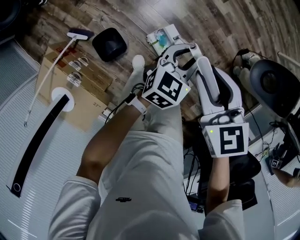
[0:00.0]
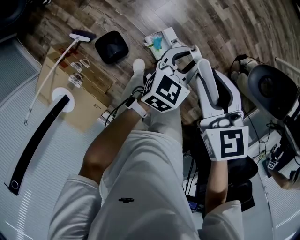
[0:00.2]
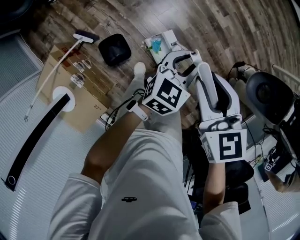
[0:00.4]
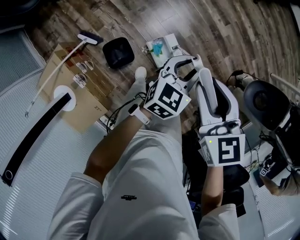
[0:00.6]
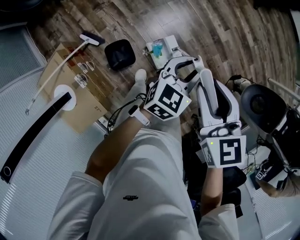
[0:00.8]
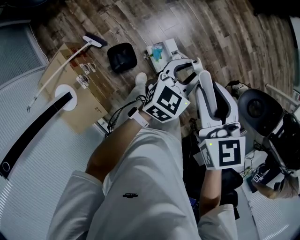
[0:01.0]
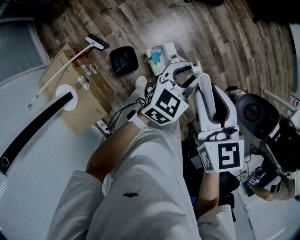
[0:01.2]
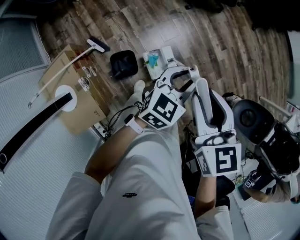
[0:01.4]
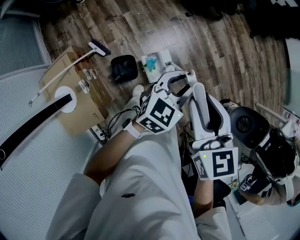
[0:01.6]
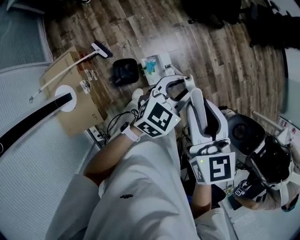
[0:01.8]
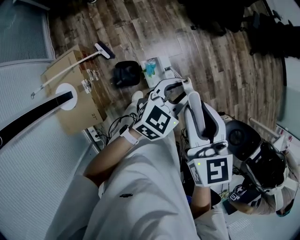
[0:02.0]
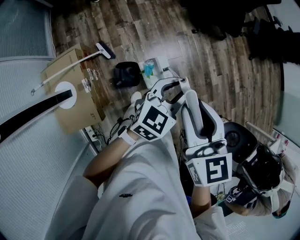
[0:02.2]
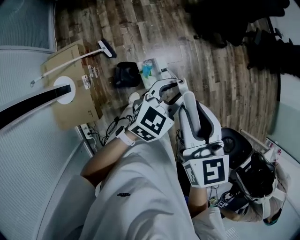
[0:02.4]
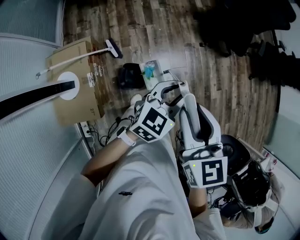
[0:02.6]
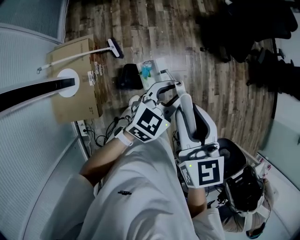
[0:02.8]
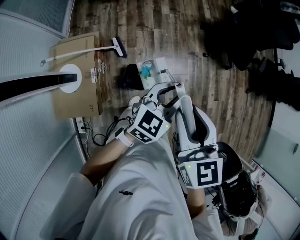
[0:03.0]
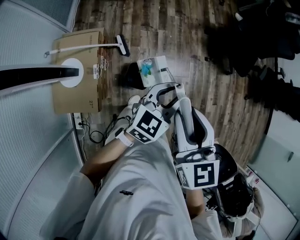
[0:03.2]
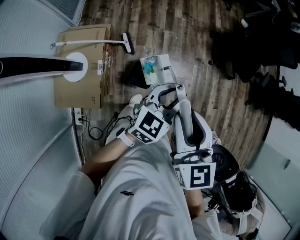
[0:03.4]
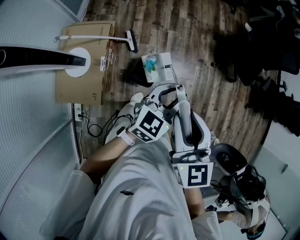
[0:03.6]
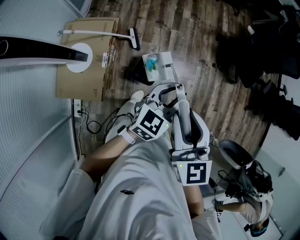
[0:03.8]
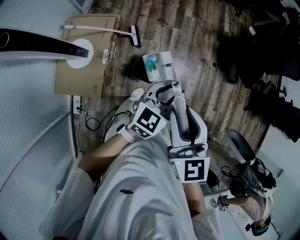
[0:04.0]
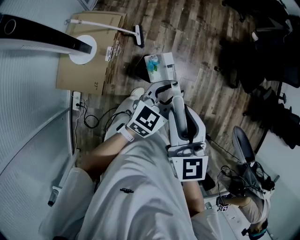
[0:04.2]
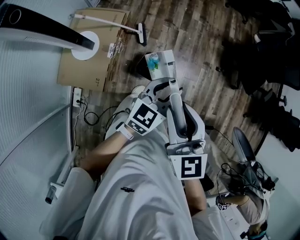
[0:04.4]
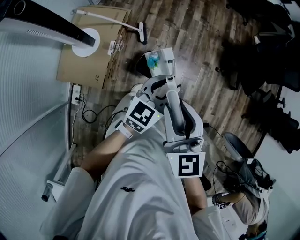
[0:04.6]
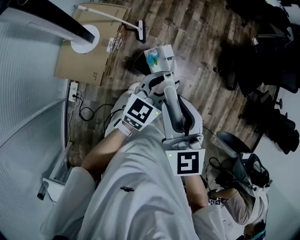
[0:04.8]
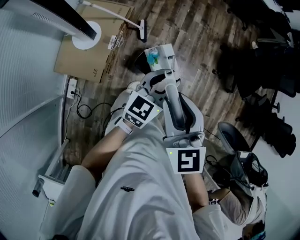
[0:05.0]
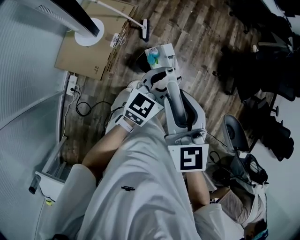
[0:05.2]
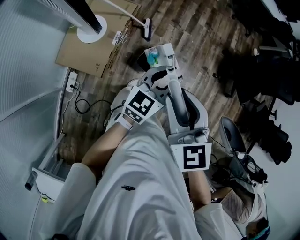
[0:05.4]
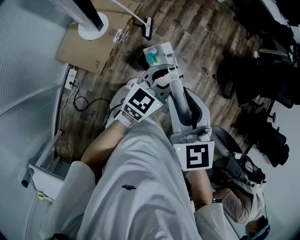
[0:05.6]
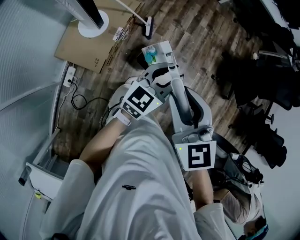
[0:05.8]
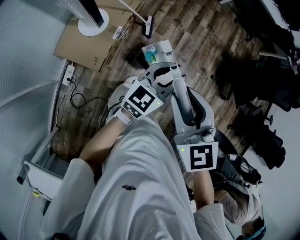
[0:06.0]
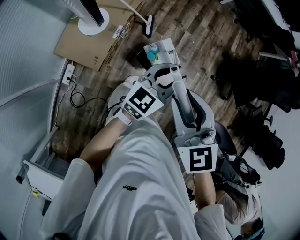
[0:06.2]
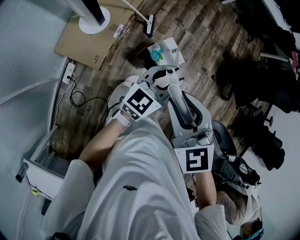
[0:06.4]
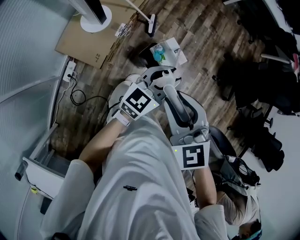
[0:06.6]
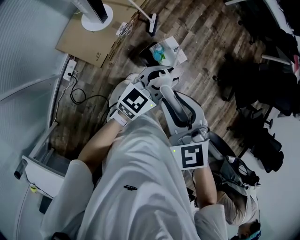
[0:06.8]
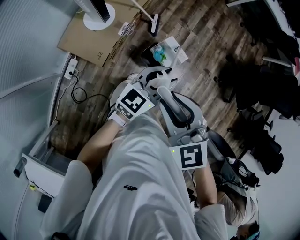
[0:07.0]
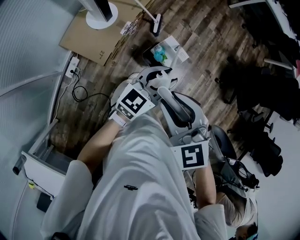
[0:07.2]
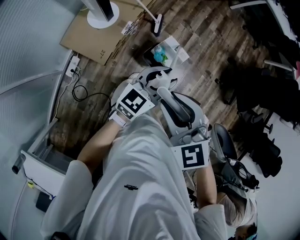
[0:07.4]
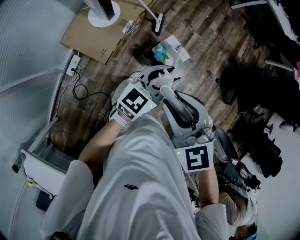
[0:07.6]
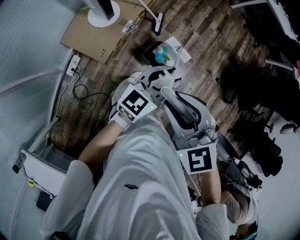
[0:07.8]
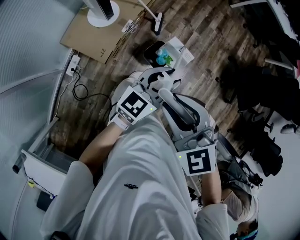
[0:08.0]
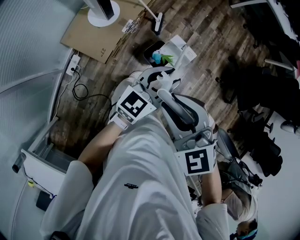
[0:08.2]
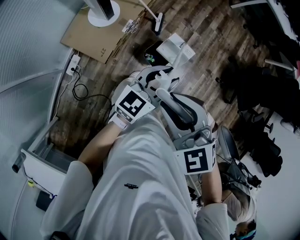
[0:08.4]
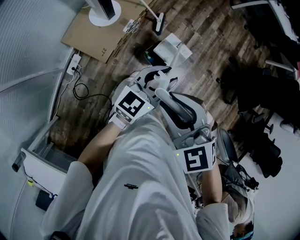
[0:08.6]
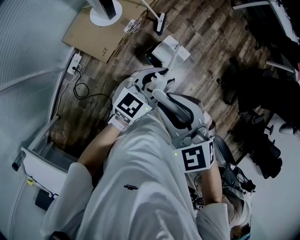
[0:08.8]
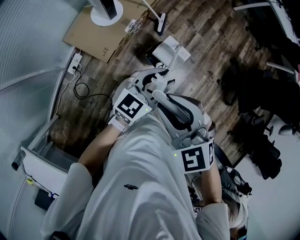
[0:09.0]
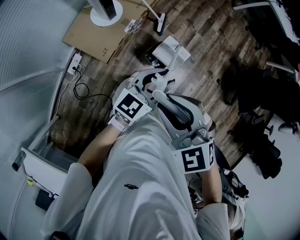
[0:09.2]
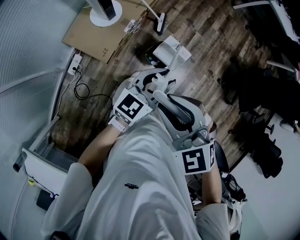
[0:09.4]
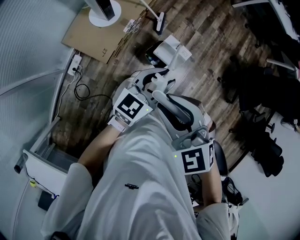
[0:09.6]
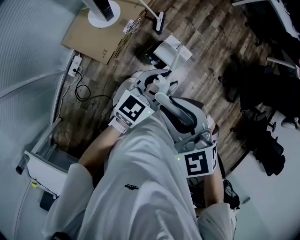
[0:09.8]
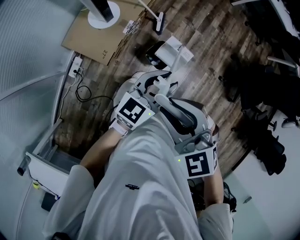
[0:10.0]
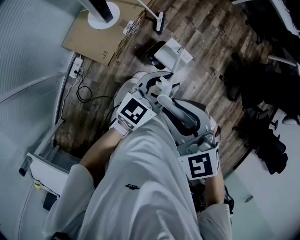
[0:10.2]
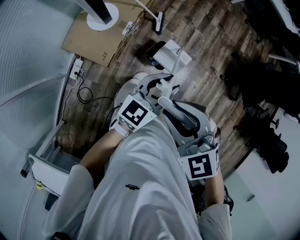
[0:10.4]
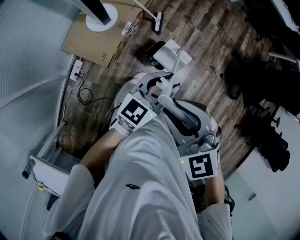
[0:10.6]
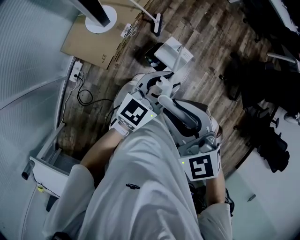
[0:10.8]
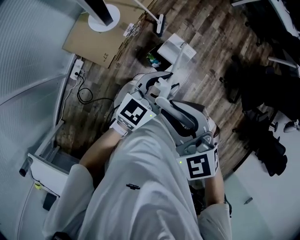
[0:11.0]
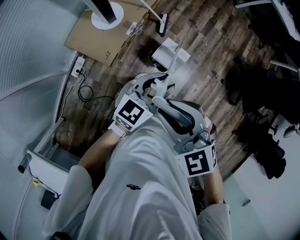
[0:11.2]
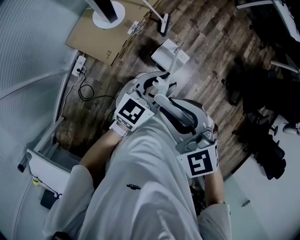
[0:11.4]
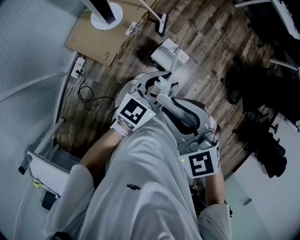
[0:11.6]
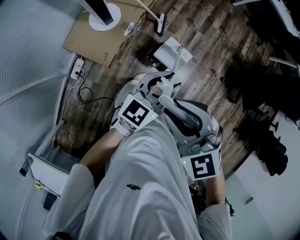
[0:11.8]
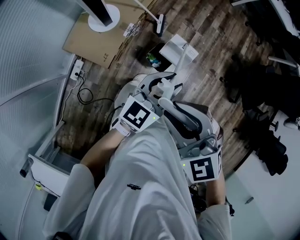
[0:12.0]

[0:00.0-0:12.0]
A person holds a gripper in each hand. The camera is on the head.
0:00.0 to 0:01.6: The grippers both shift upward and to the left by roughly 25 cm.
0:01.6 to 0:03.0: The grippers both shift to the left by some 15 cm. The left gripper rotates approximately 30 degrees, while the right gripper swivels approximately 20 degrees.
0:03.0 to 0:04.4: The grippers both shift to the left and backward by about 10 cm.
0:04.4 to 0:06.0: The right gripper changes its angle by roughly 20 degrees.
0:06.0 to 0:07.6: The left gripper ends up approximately 5 cm from where it was. The right gripper travels backward by about 5 cm, and changes its angle by approximately 30 degrees.
0:07.6 to 0:12.0: There are only small adjustments of the grippers.

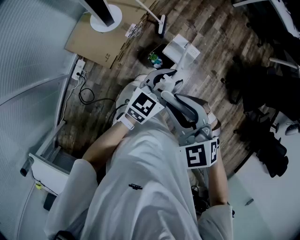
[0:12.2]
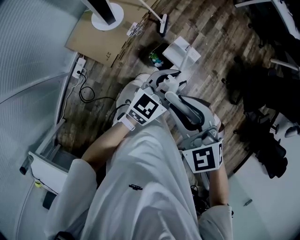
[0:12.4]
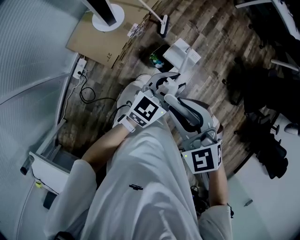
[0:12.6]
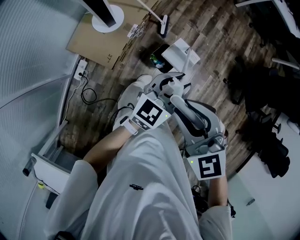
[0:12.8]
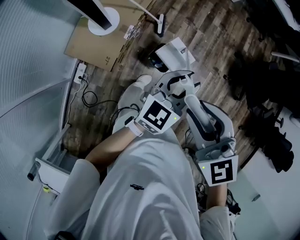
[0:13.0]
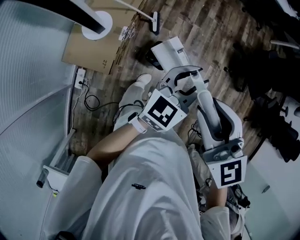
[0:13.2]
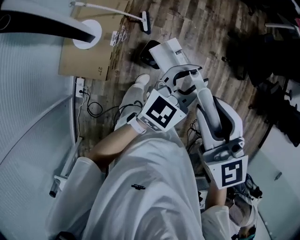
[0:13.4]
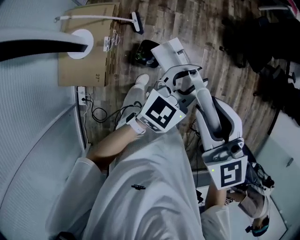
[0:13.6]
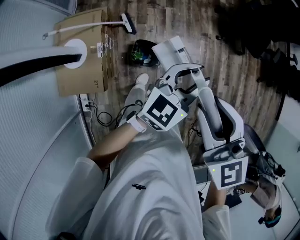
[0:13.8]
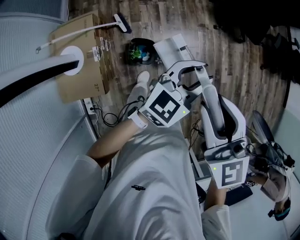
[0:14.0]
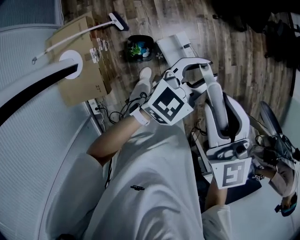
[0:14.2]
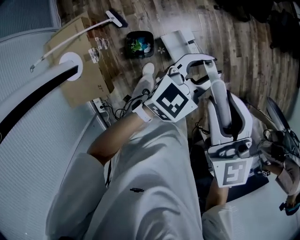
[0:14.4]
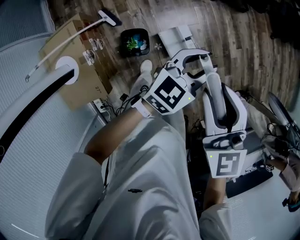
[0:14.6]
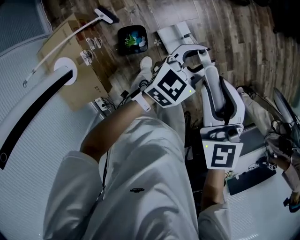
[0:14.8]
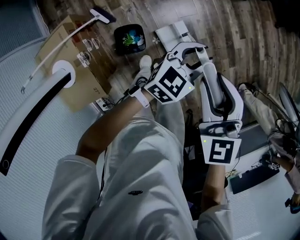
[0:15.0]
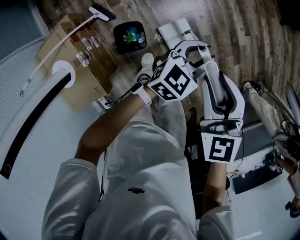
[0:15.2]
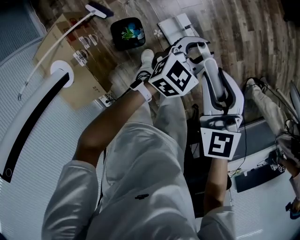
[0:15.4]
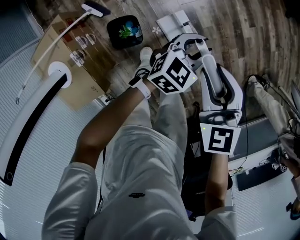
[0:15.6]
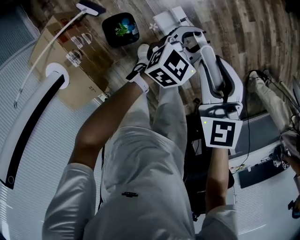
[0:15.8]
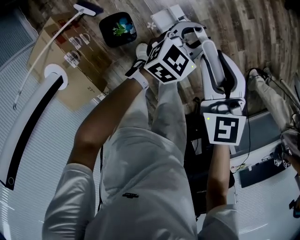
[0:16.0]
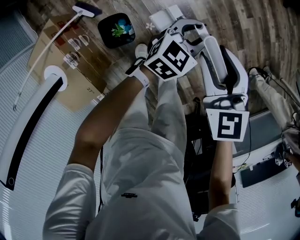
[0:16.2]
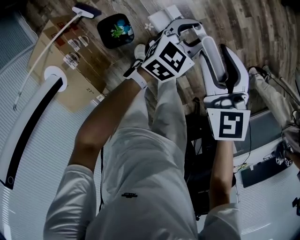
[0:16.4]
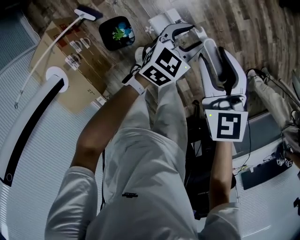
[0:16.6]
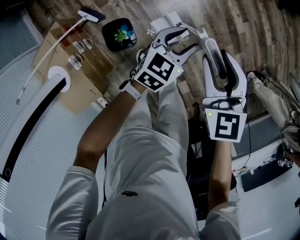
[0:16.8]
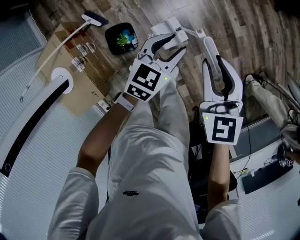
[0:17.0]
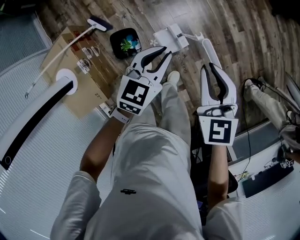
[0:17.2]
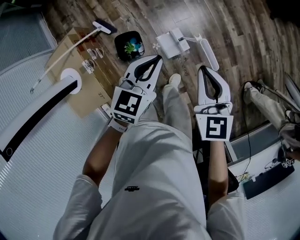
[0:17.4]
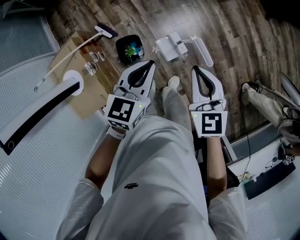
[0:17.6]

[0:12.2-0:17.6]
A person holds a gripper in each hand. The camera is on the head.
0:12.2 to 0:13.6: The left gripper changes place by about 20 cm, and changes its angle by approximately 20 degrees; the right gripper ends up roughly 20 cm from where it was, and changes its angle by some 50 degrees.
0:13.6 to 0:15.0: The left gripper shifts by roughly 30 cm, and rotates about 40 degrees; the right gripper moves some 30 cm, and changes its angle by about 40 degrees.
0:15.0 to 0:16.2: The two grippers go about 15 cm downward and to the right.
0:16.2 to 0:17.6: The left gripper shifts approximately 30 cm upward, backward and to the left, rotates some 30 degrees, and closes its fingers. The right gripper goes roughly 20 cm upward and backward, and closes.

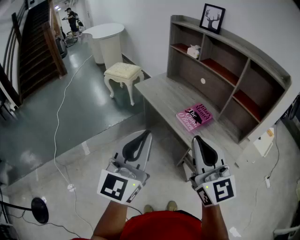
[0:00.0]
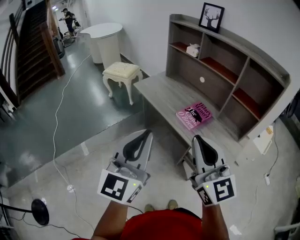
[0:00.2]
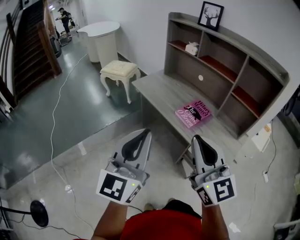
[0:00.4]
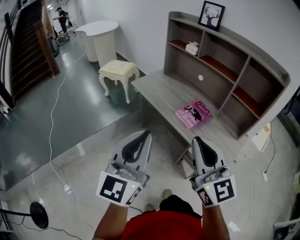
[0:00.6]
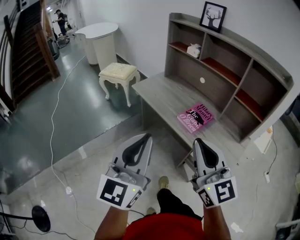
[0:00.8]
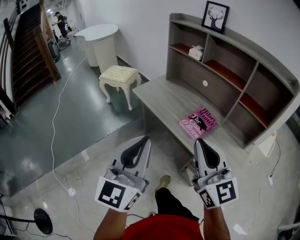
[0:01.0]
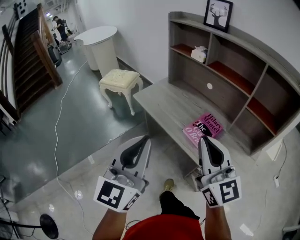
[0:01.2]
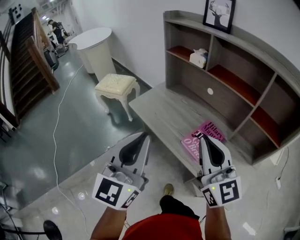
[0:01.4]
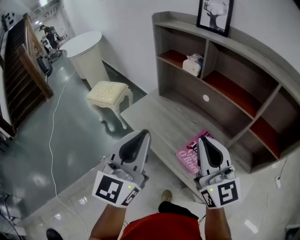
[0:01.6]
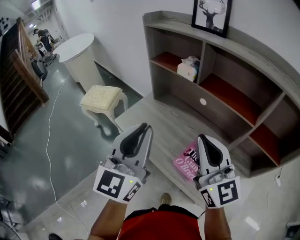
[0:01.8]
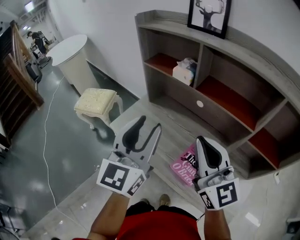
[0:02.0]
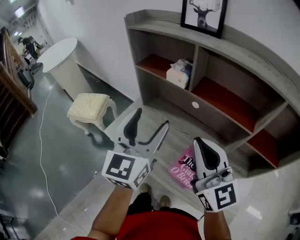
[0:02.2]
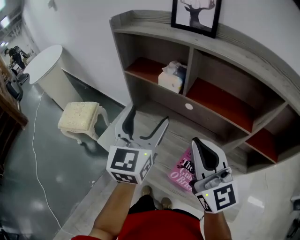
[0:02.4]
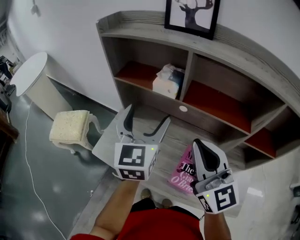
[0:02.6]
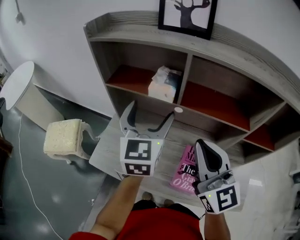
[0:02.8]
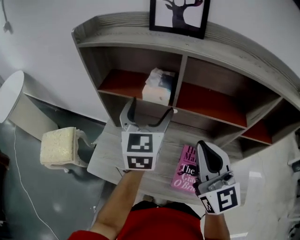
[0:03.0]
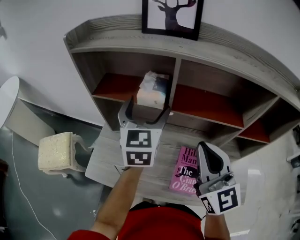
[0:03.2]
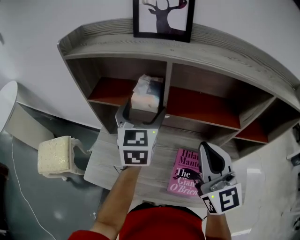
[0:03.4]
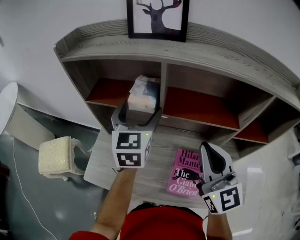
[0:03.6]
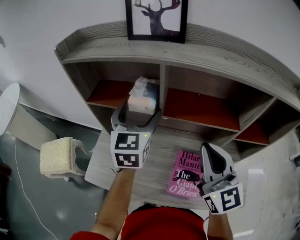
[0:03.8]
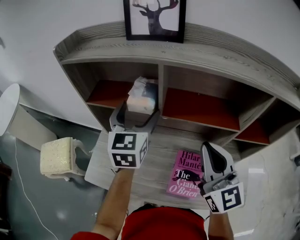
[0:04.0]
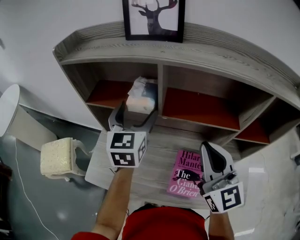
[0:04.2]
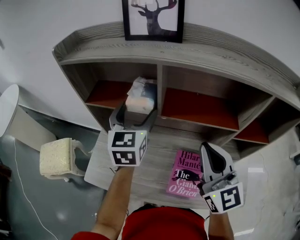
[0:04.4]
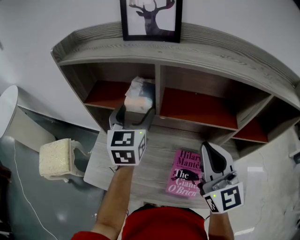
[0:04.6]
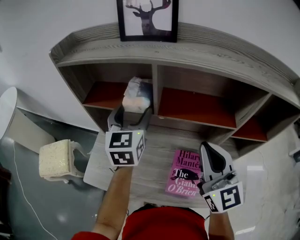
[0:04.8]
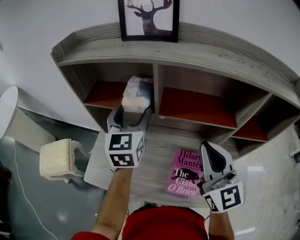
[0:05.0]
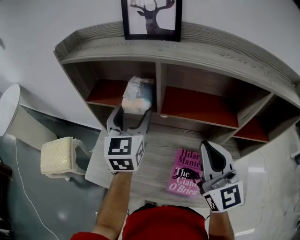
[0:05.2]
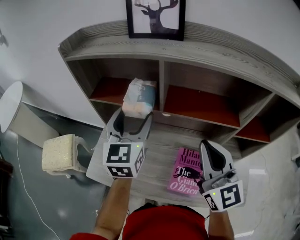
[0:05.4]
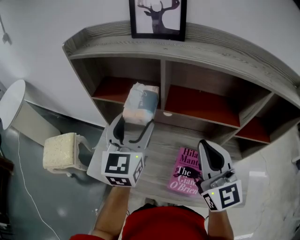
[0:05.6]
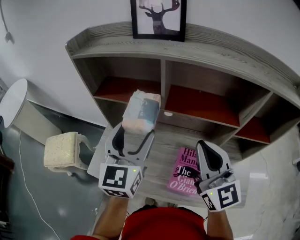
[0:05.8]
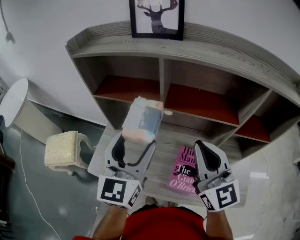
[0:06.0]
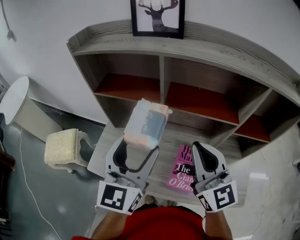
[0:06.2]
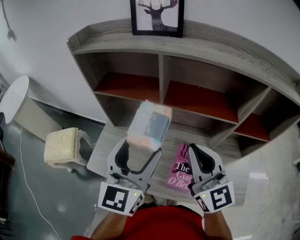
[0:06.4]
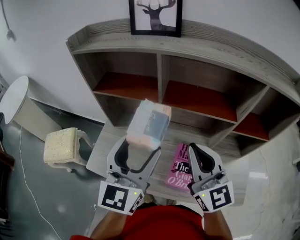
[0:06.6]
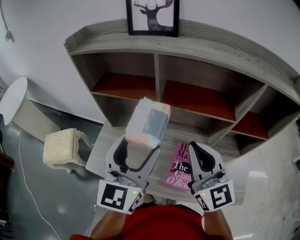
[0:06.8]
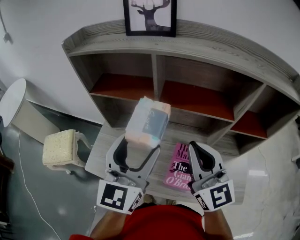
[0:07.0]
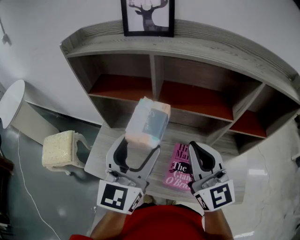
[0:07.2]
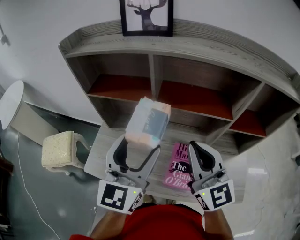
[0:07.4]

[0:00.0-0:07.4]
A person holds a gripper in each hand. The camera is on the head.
0:00.0 to 0:01.4: Both grippers travel together forward, some 20 cm.
0:01.4 to 0:03.0: The right gripper moves approximately 25 cm, and rotates some 30 degrees. Meanwhile the left gripper shifts by roughly 50 cm, changes its angle by roughly 30 degrees, and opens.
0:03.0 to 0:04.4: The right gripper heads to the right, covering some 5 cm.
0:04.4 to 0:06.0: The left gripper is displaced backward by some 15 cm.
0:06.0 to 0:07.4: The grippers make only small movements.
